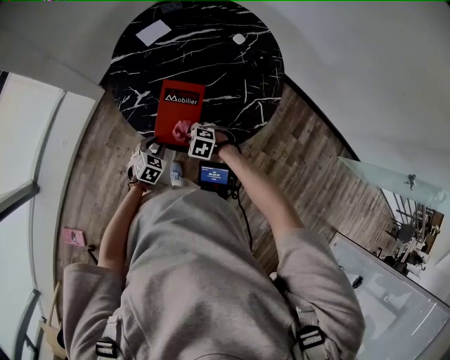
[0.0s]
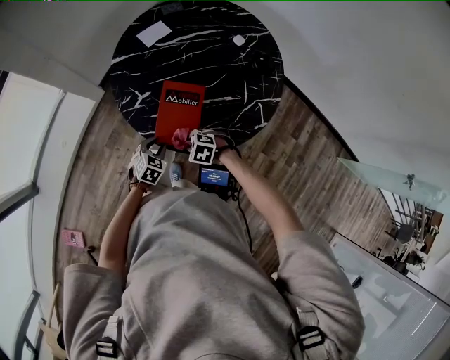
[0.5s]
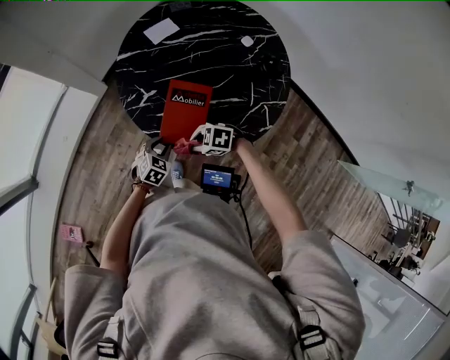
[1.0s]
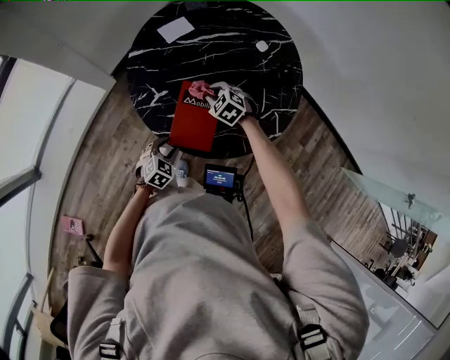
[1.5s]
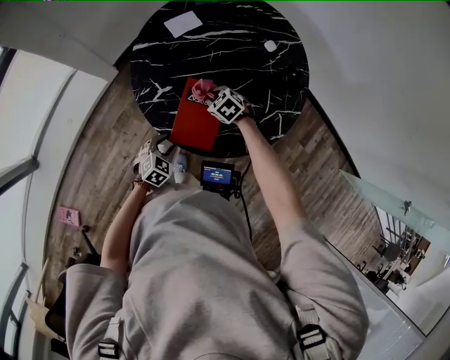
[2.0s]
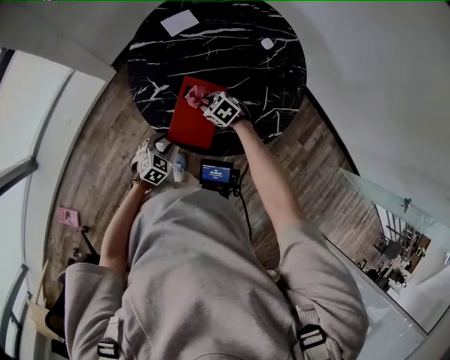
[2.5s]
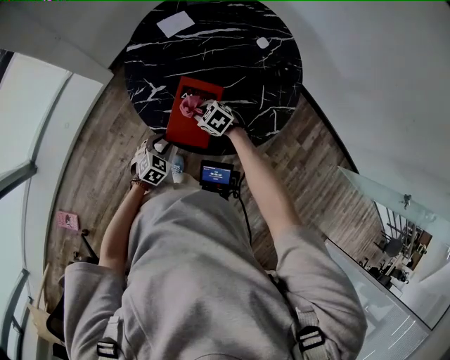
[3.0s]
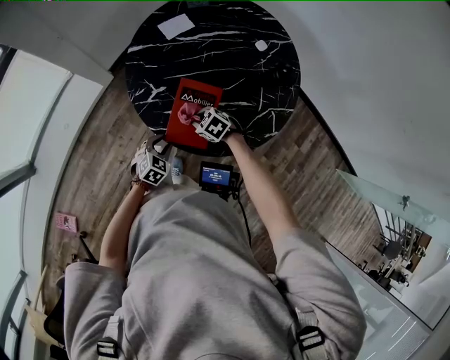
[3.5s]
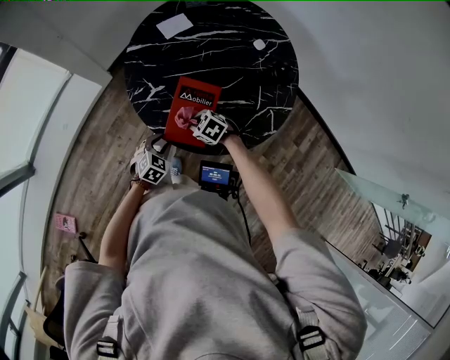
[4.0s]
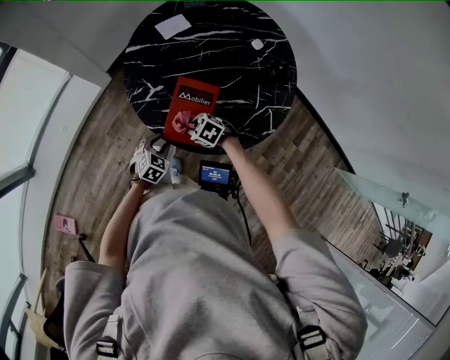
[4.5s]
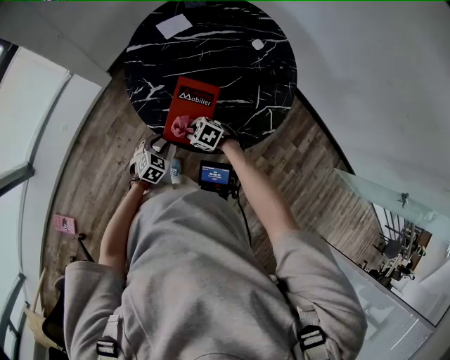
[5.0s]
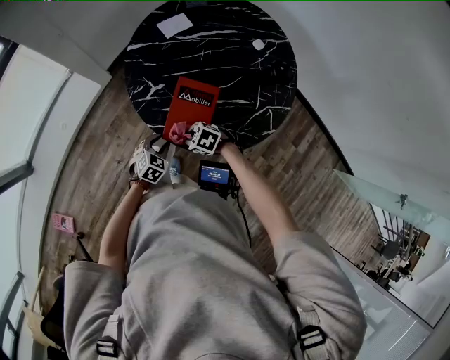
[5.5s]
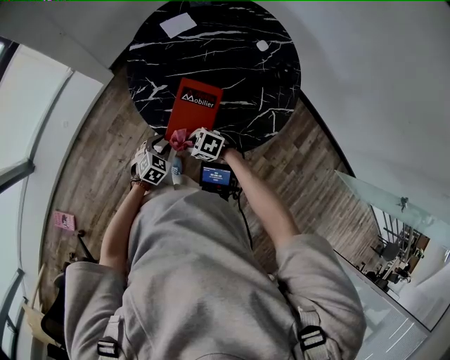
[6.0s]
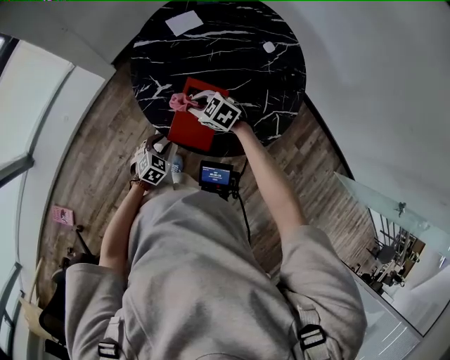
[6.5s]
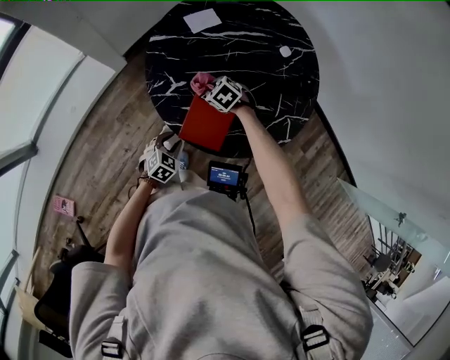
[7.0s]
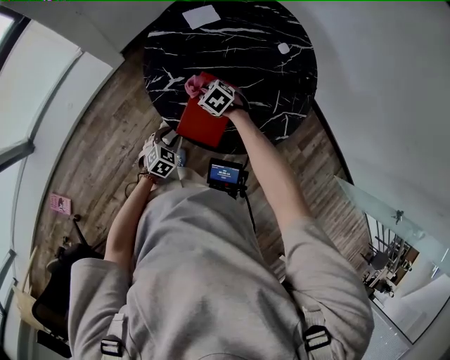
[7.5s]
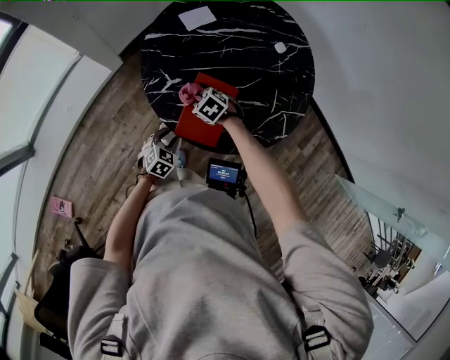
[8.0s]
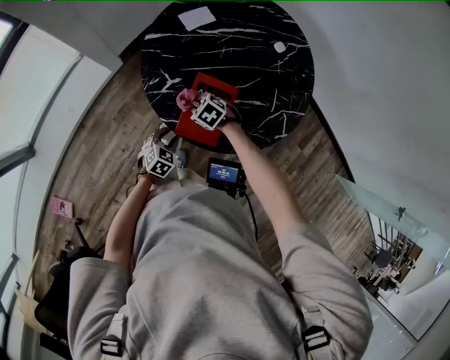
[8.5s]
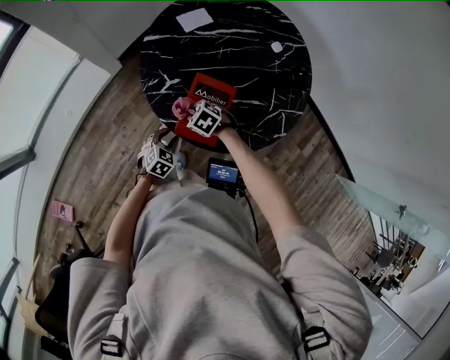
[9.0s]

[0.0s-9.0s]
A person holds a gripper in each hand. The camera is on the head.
0.0s to 2.0s: The right gripper shifts by approximately 15 cm.
2.0s to 4.5s: The right gripper shifts by about 15 cm.
4.5s to 7.0s: The right gripper moves approximately 15 cm.
7.0s to 9.0s: The right gripper shifts roughly 10 cm backward and to the left.

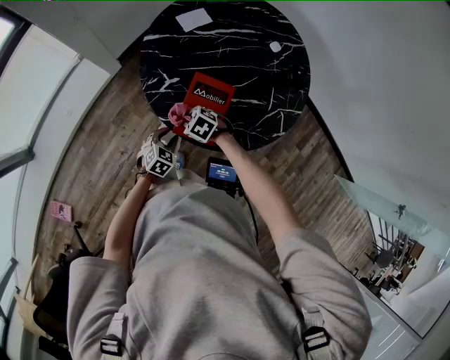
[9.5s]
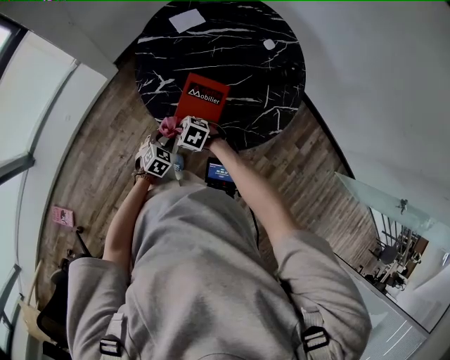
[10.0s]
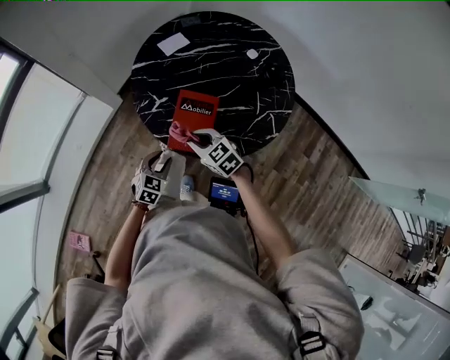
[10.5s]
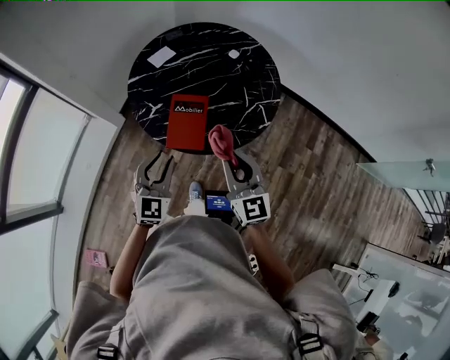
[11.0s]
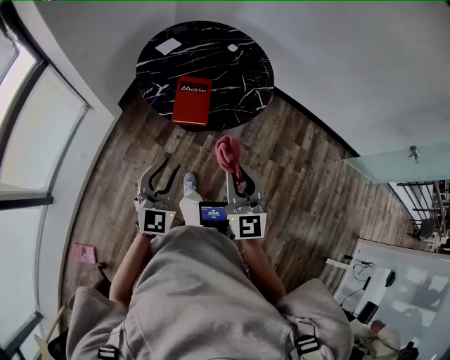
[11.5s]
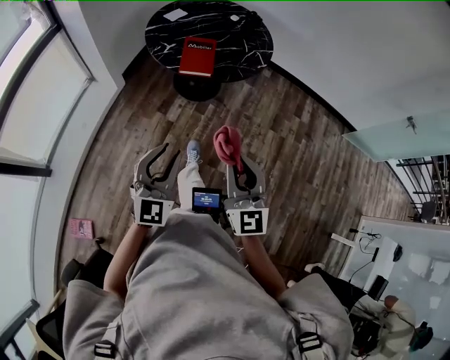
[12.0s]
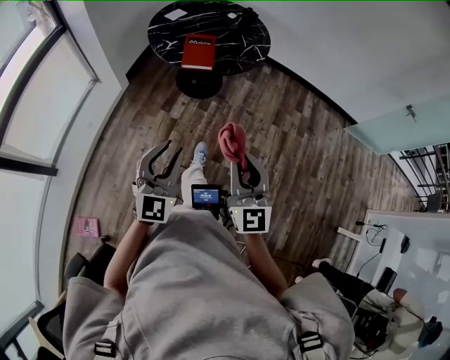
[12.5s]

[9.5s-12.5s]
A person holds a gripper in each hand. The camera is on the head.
9.5s to 11.0s: The two grippers go roughly 30 cm upward. The left gripper tilts its fingers some 40 degrees upward. Meanwhile the right gripper tilts its fingers about 60 degrees upward.
11.0s to 12.5s: The pair of grippers is taken backward, about 50 cm.

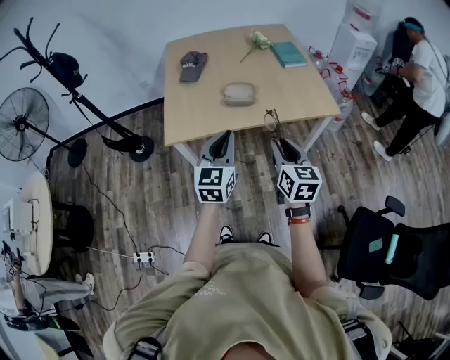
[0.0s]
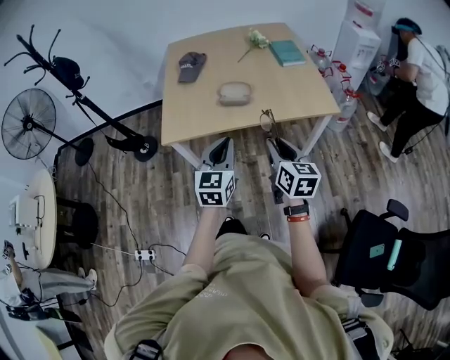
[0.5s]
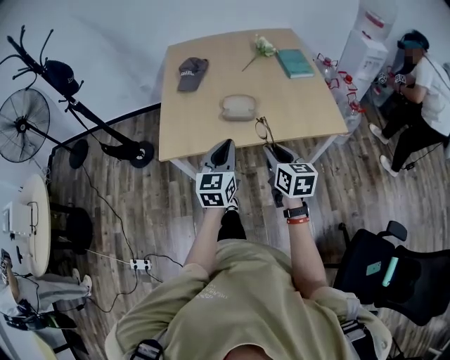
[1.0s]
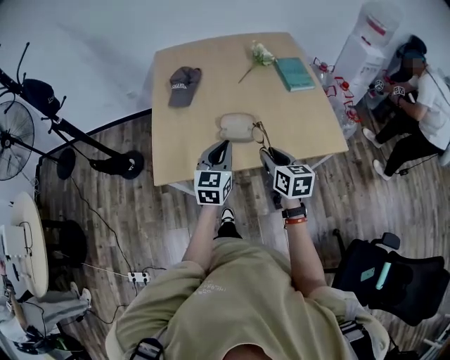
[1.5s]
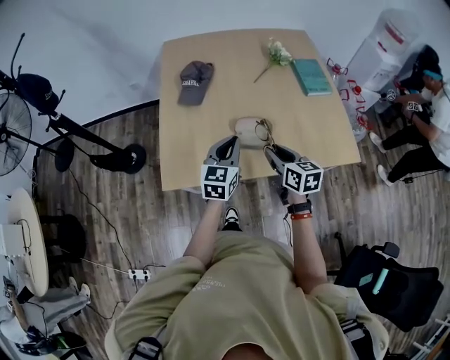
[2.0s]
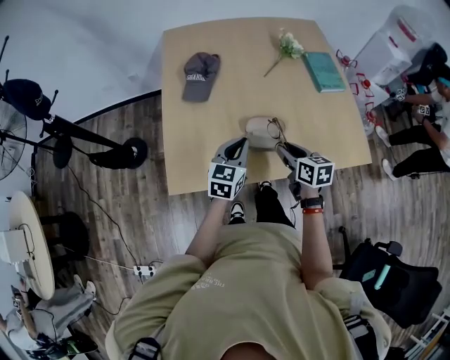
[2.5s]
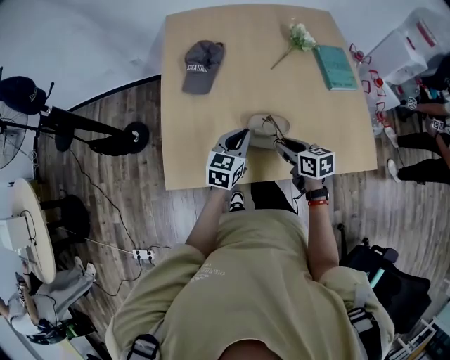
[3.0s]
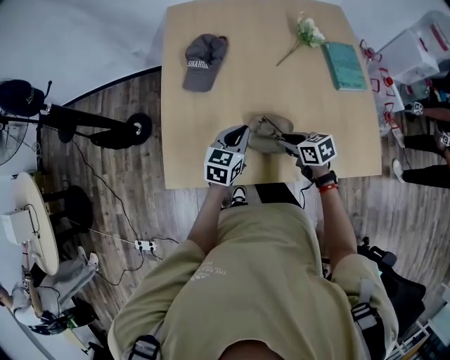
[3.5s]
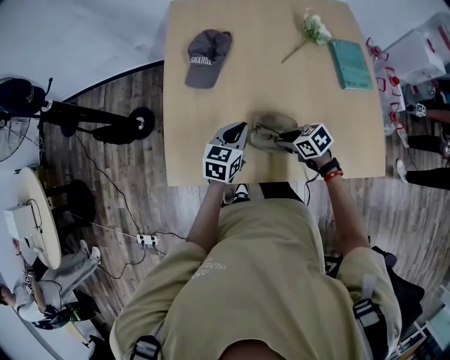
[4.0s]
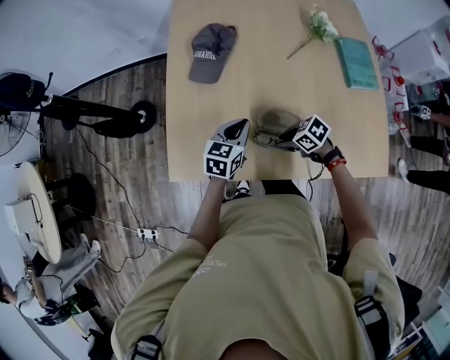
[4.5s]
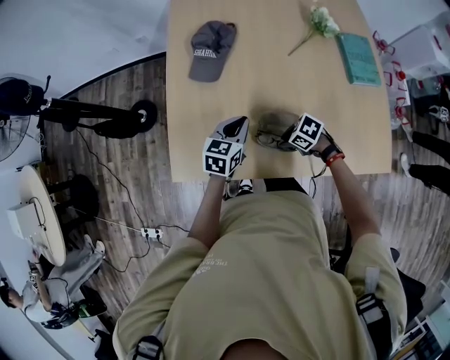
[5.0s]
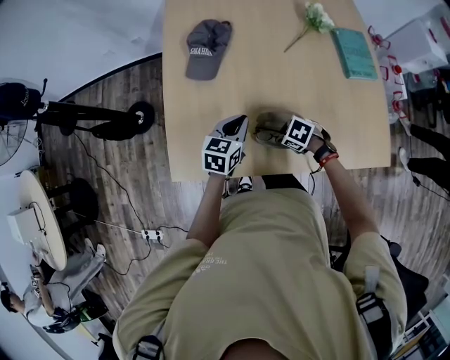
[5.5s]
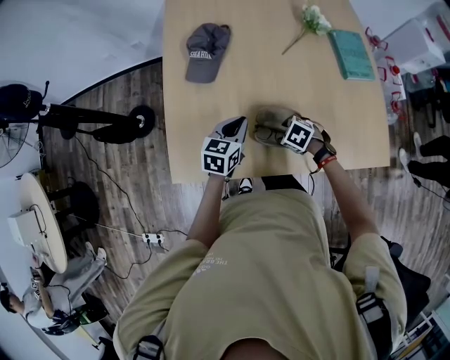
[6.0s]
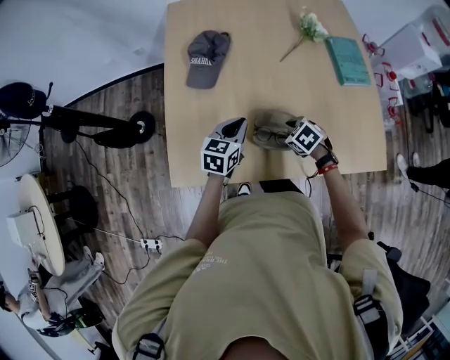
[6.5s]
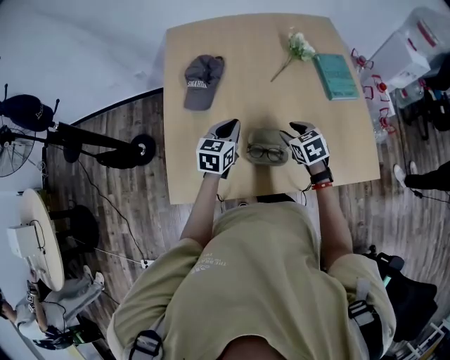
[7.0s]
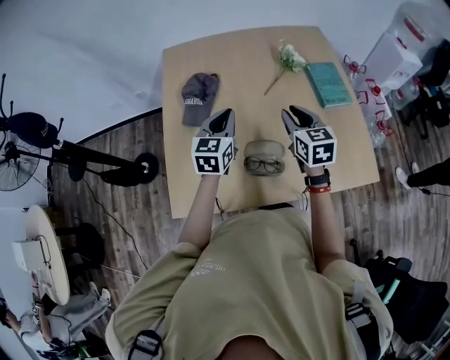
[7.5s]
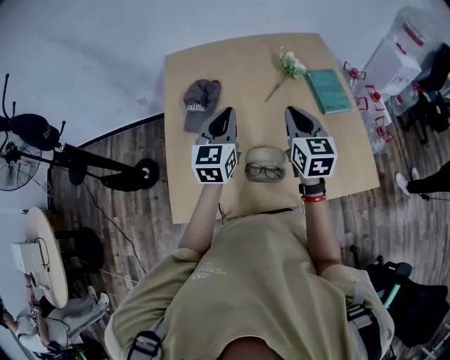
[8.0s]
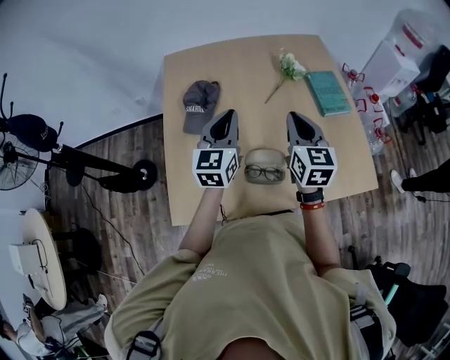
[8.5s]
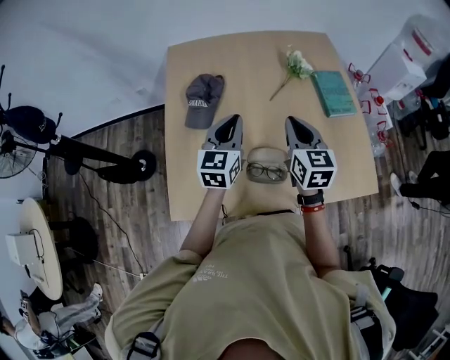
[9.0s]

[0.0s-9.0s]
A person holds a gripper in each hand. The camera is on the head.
0.0s to 2.0s: Both grippers move forward, approximately 35 cm. The right gripper swivels about 20 degrees.
2.0s to 4.5s: The left gripper shifts by approximately 20 cm, while the right gripper goes approximately 20 cm downward, and rotates approximately 70 degrees.
4.5s to 7.0s: The left gripper heads upward, covering some 5 cm. The right gripper shifts about 10 cm upward, and rotates about 50 degrees.
7.0s to 9.0s: Both grippers travel together upward, approximately 15 cm. The right gripper tilts its fingers about 30 degrees upward, and closes.

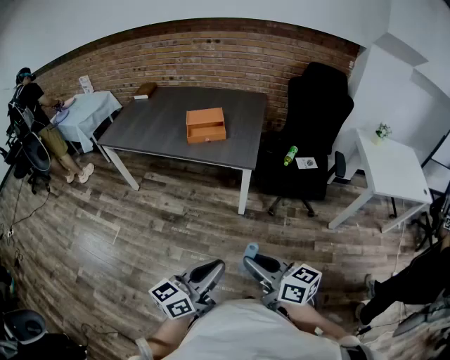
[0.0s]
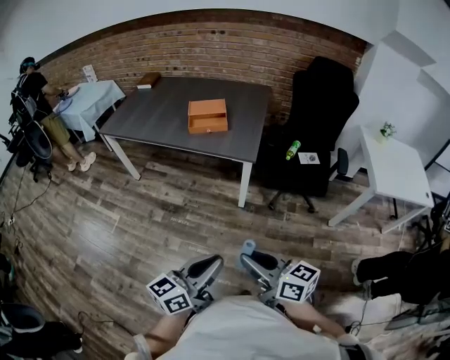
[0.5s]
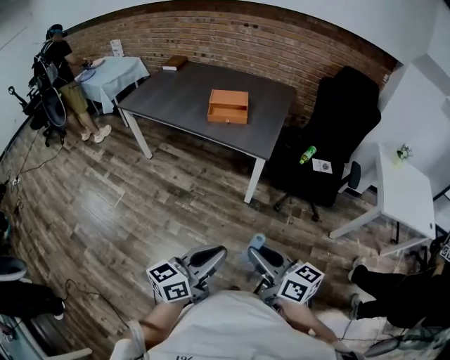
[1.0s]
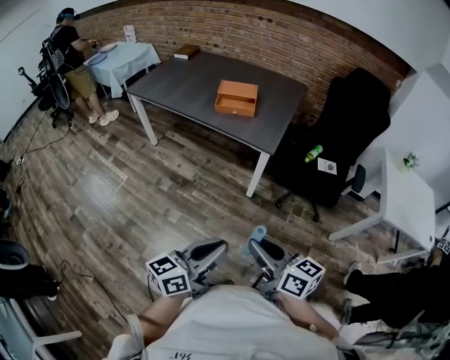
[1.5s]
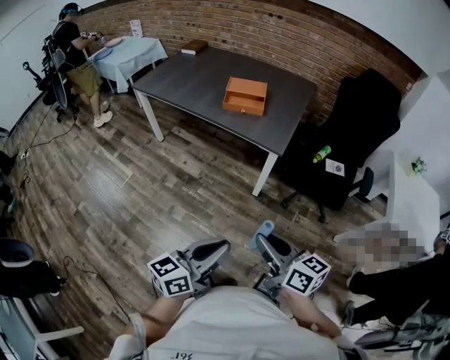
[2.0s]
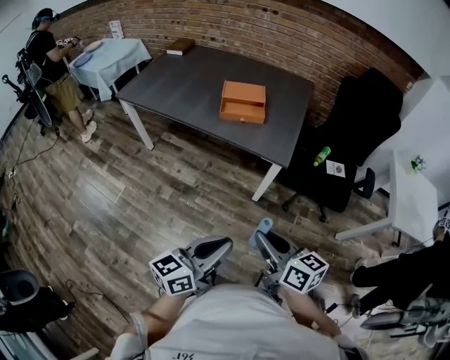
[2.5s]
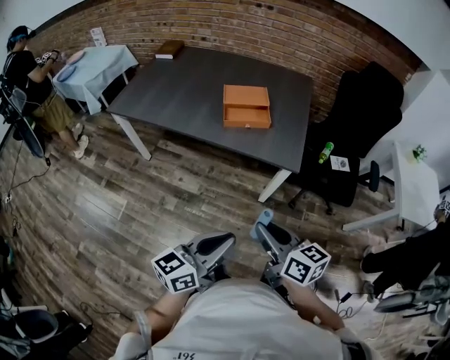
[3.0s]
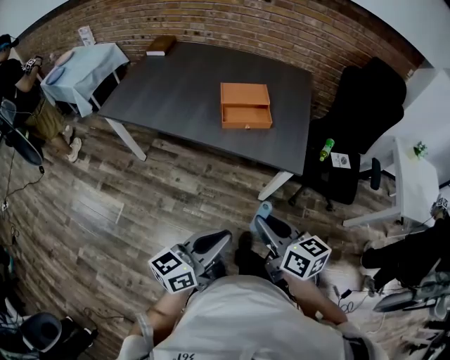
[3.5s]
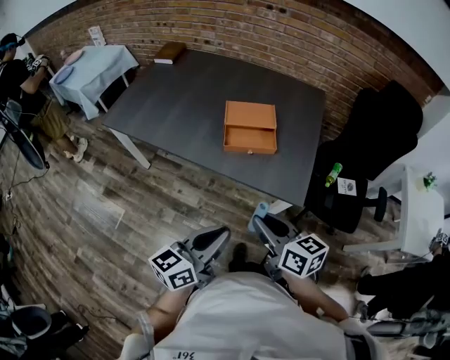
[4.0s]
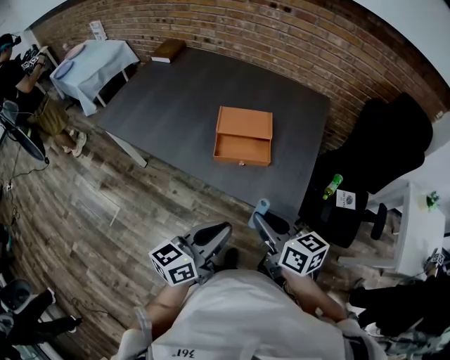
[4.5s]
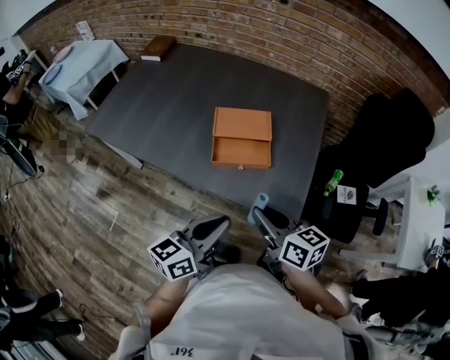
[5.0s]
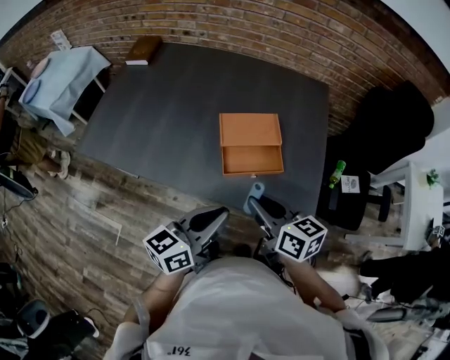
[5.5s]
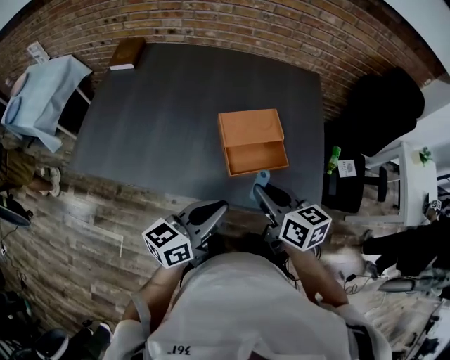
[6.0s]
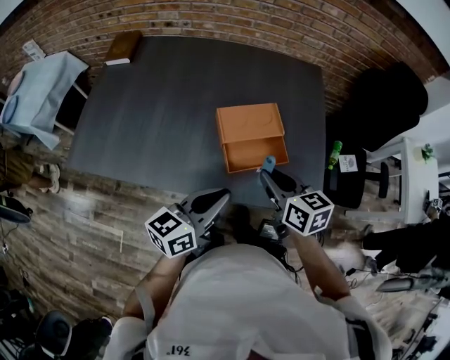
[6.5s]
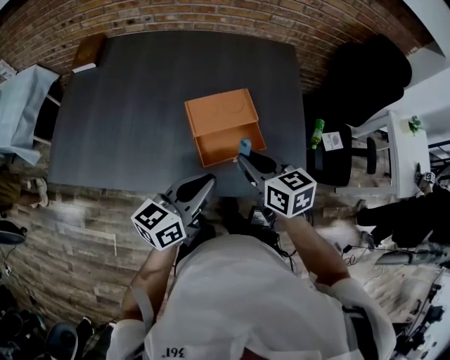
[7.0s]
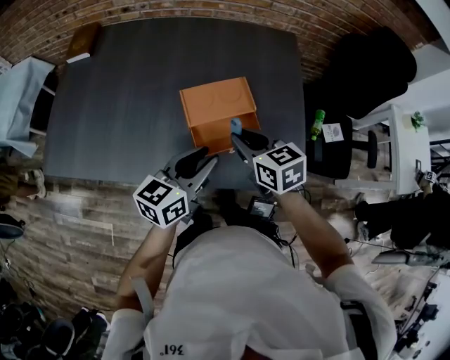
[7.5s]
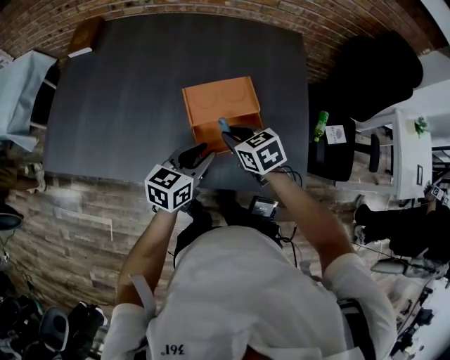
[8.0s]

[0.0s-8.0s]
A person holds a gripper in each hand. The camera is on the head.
0.0s to 2.0s: The right gripper ends up roughly 5 cm from where it was.
2.0s to 4.0s: Both grippers travel together forward and to the left, about 40 cm.
4.0s to 6.0s: The left gripper is displaced forward and to the left by about 25 cm; the right gripper shifts approximately 25 cm forward.
6.0s to 8.0s: The right gripper moves downward and forward, about 20 cm, and swivels roughly 30 degrees, while the left gripper shifts some 20 cm forward, downward and to the right, and opens.
